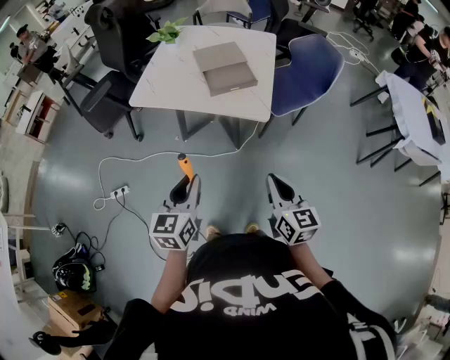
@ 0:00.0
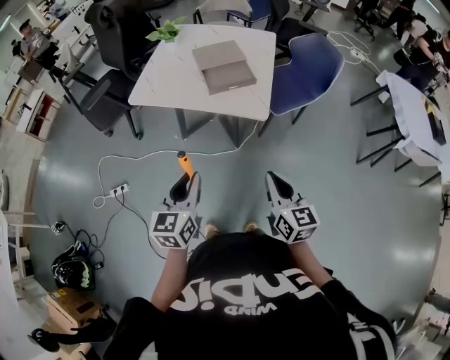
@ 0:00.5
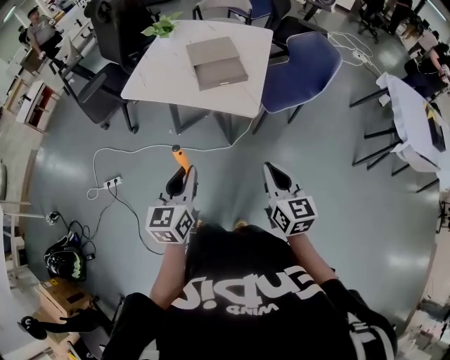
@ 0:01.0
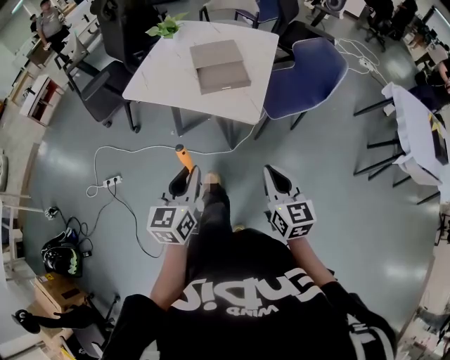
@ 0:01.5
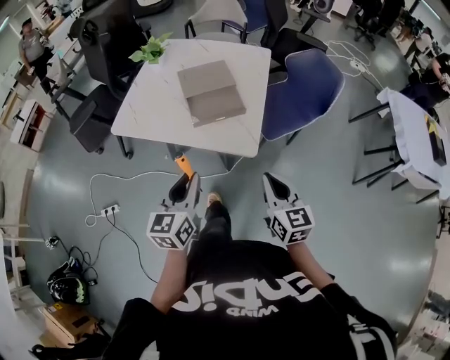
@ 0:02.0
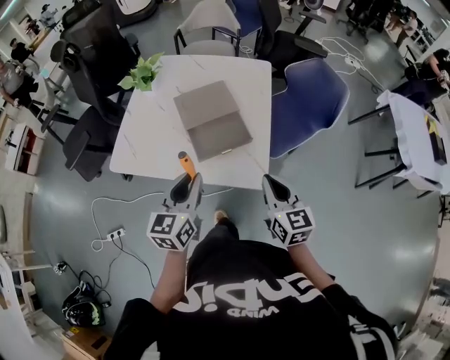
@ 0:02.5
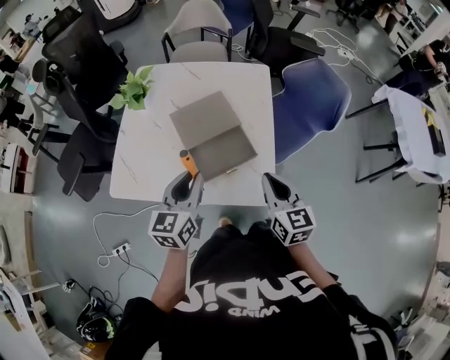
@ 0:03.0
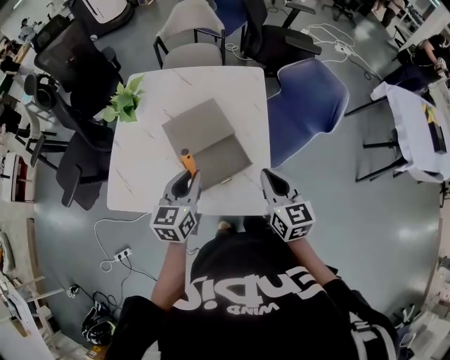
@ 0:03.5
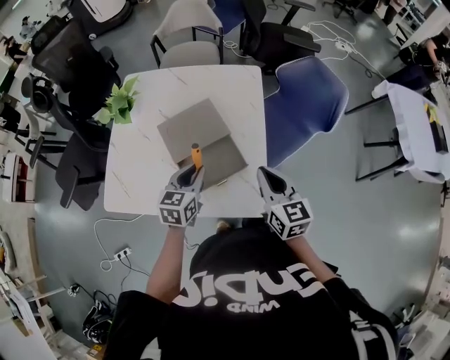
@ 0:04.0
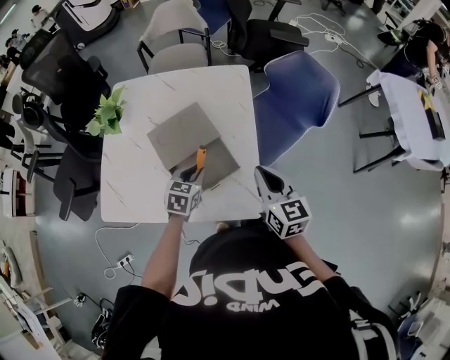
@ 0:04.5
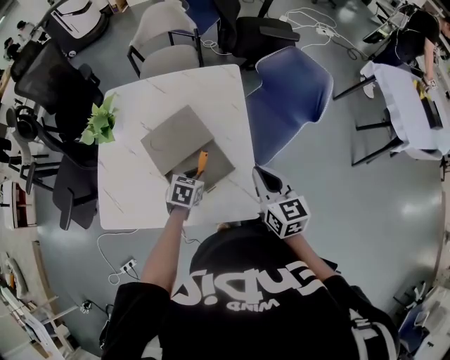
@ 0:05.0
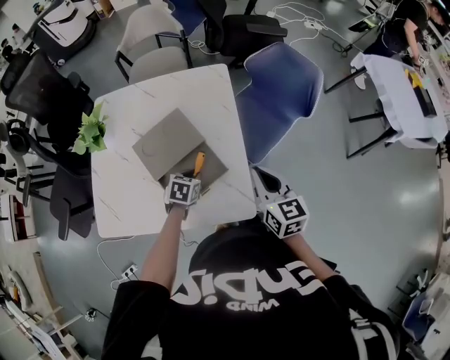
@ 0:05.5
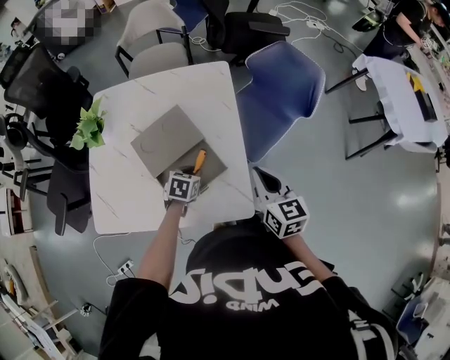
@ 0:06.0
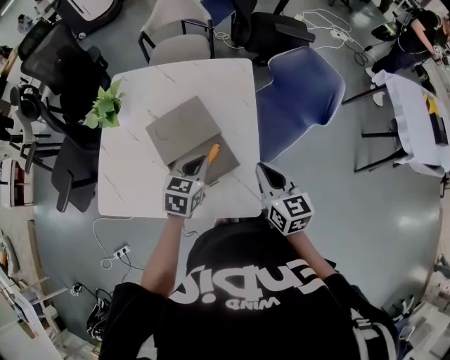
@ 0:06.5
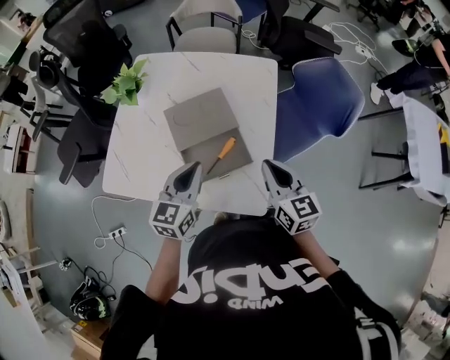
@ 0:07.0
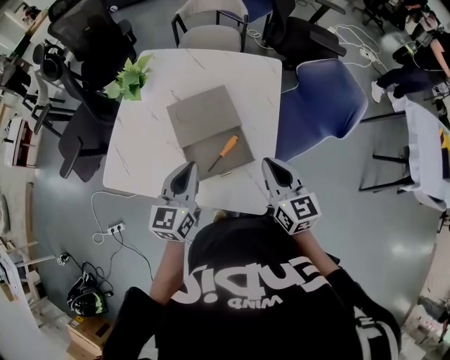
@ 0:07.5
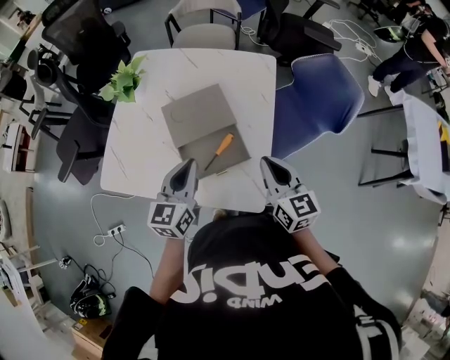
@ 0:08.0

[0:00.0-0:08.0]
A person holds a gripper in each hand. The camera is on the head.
0:00.0 to 0:02.0: The right gripper is displaced forward by some 15 cm; the left gripper goes roughly 20 cm forward and to the right.
0:02.0 to 0:04.0: Both grippers move forward, approximately 30 cm. The left gripper rotates approximately 20 degrees.
0:04.0 to 0:06.0: The right gripper goes approximately 5 cm to the right, while the left gripper goes some 15 cm downward, and rotates approximately 30 degrees.
0:06.0 to 0:08.0: The left gripper goes approximately 20 cm upward, and points its fingers some 40 degrees further upward; the right gripper moves to the left, some 5 cm.

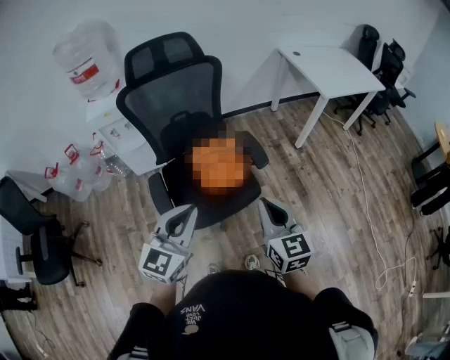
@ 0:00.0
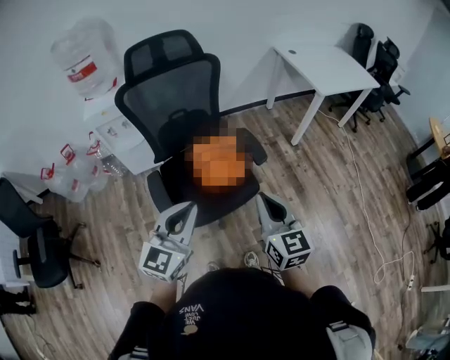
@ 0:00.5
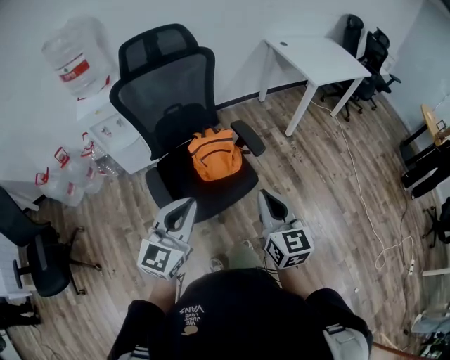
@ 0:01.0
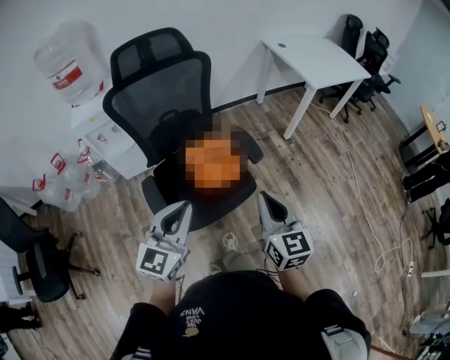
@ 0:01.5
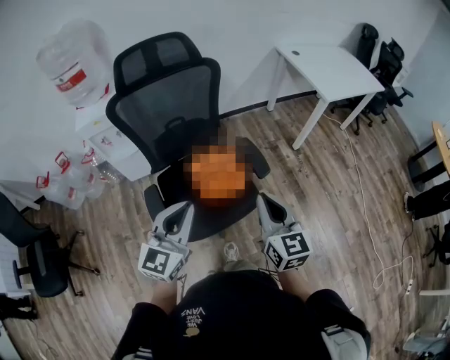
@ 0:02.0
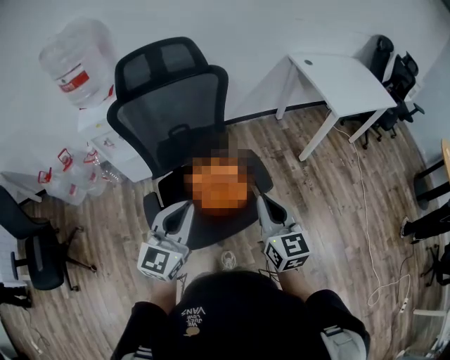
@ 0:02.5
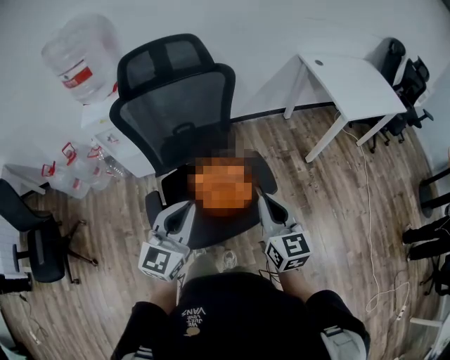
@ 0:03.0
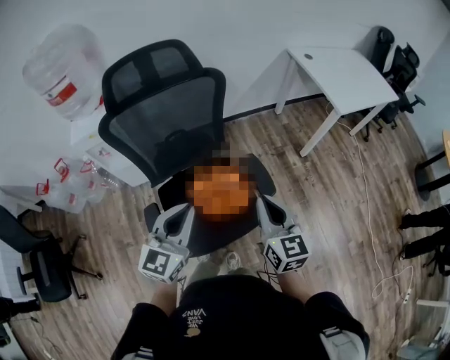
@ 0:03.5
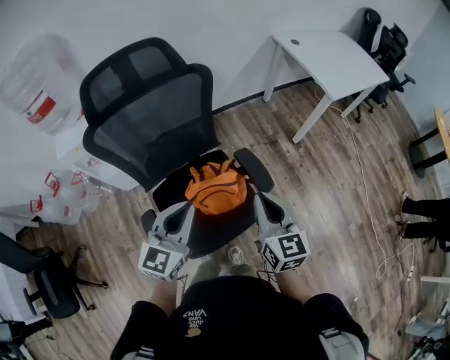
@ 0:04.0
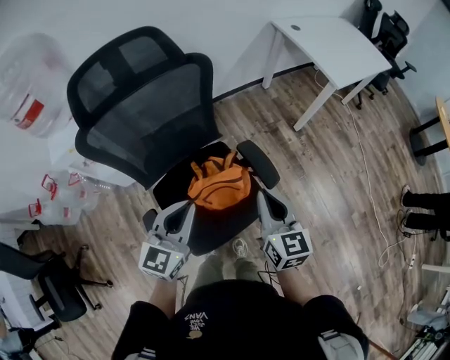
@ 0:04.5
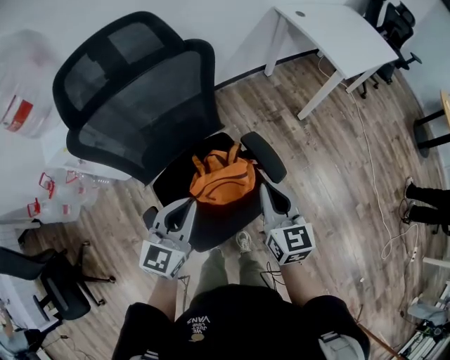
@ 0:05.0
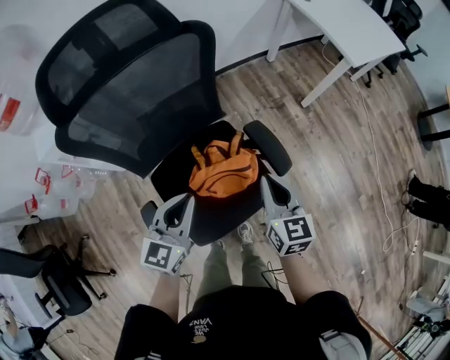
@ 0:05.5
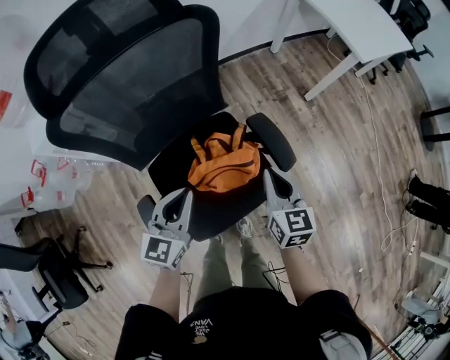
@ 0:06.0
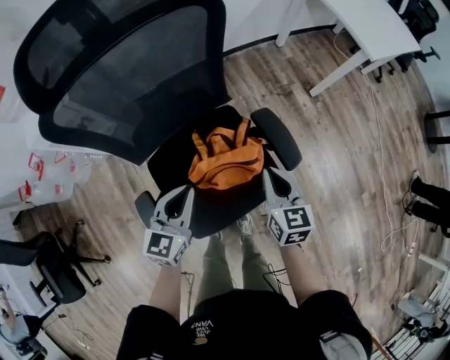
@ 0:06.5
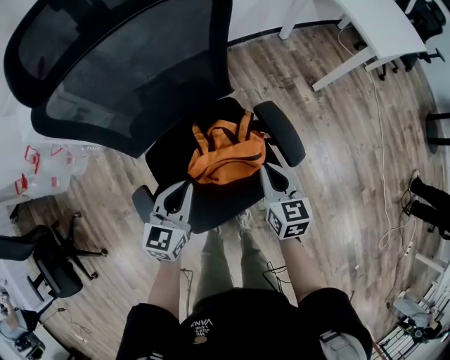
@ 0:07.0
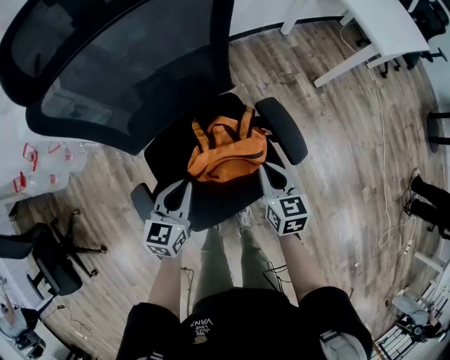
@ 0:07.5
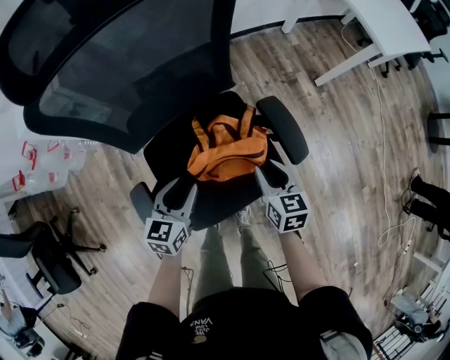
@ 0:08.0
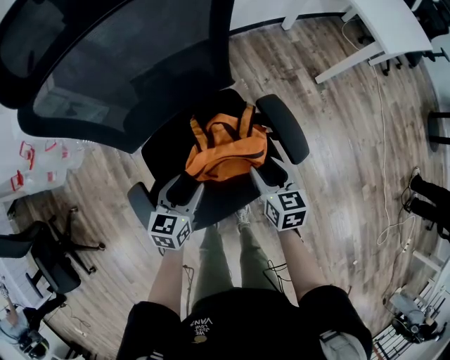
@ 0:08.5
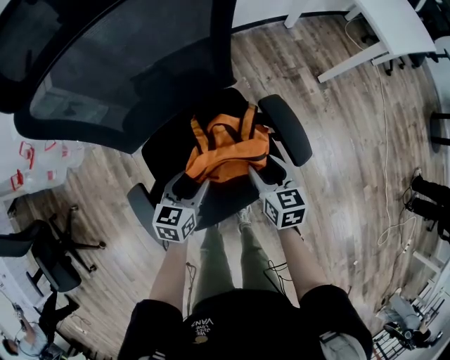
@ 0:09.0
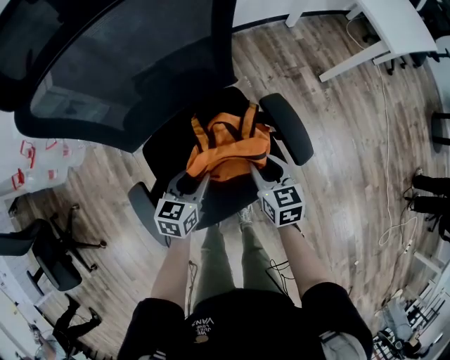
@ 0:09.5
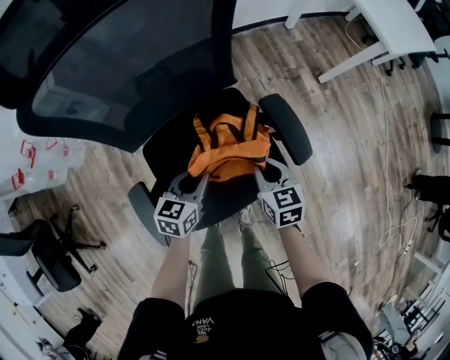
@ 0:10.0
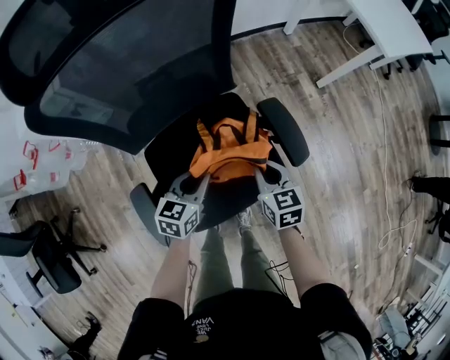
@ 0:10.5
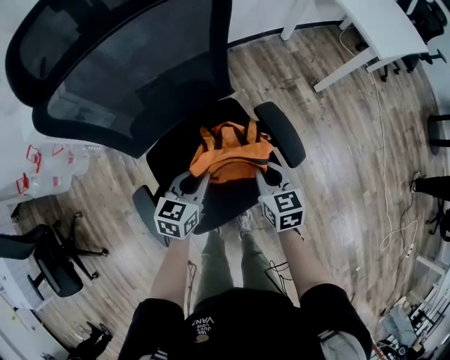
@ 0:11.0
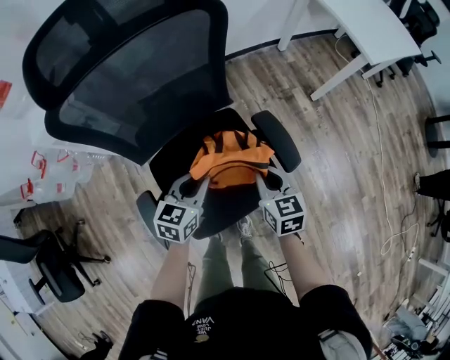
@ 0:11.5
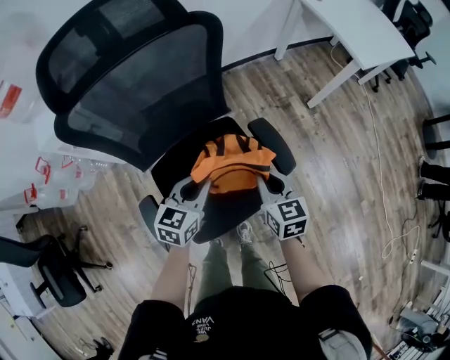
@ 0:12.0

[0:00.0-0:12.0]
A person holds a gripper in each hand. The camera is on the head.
0:00.0 to 0:02.0: Both grippers move forward, roughly 10 cm.
0:02.0 to 0:04.0: The two grippers go some 15 cm forward.
0:04.0 to 0:06.0: The left gripper is displaced downward by some 15 cm, while the right gripper shifts approximately 20 cm downward and forward.
0:06.0 to 0:08.0: Both grippers travel together downward, about 15 cm. The right gripper opens. Meanwhile the left gripper opens its fingers.
0:08.0 to 0:10.0: The right gripper closes its fingers. Meanwhile the left gripper shifts by about 5 cm, and opens and closes again.
0:10.0 to 0:12.0: Both grippers travel together upward, approximately 15 cm.

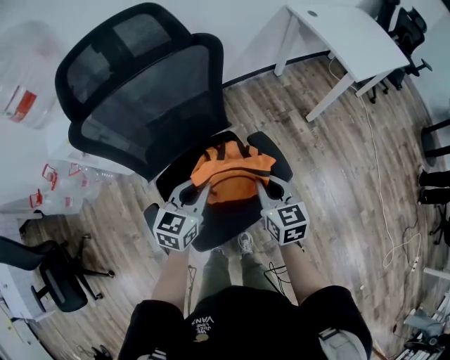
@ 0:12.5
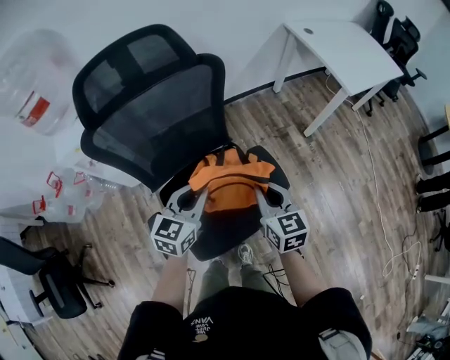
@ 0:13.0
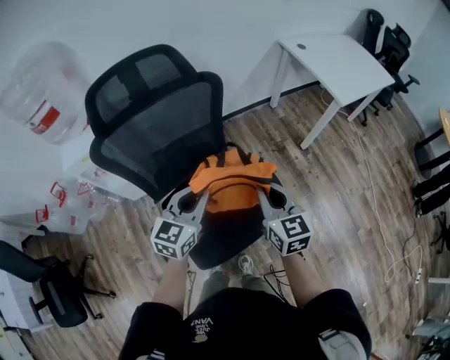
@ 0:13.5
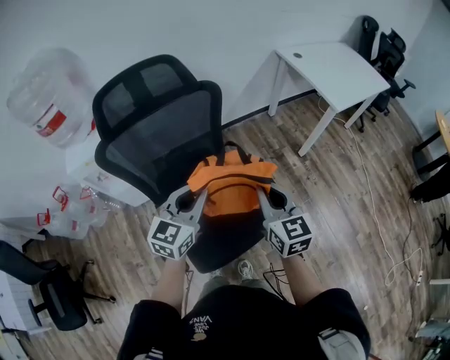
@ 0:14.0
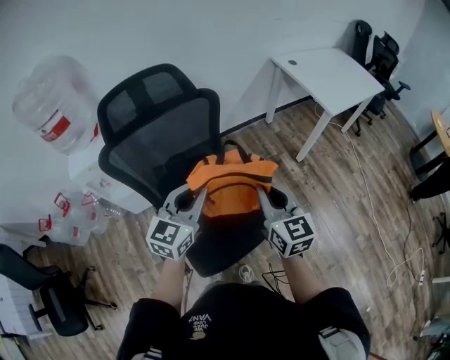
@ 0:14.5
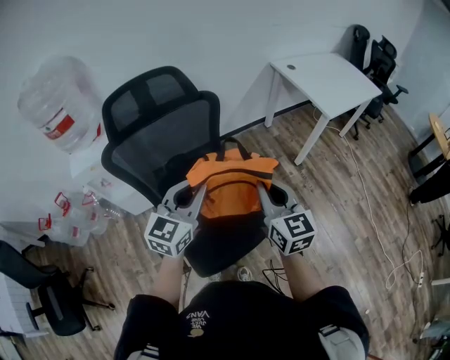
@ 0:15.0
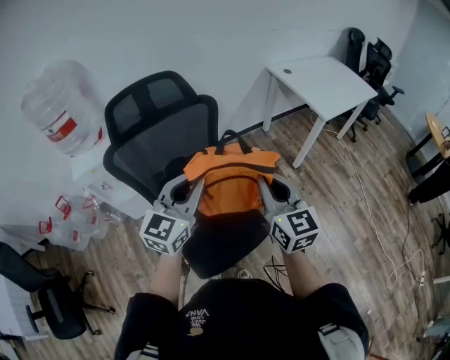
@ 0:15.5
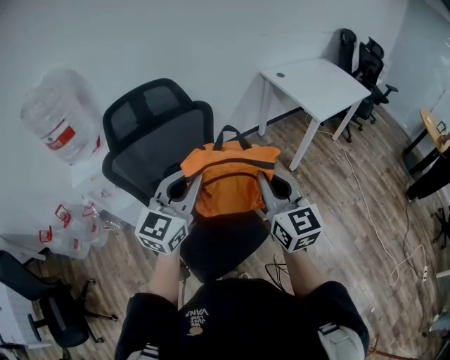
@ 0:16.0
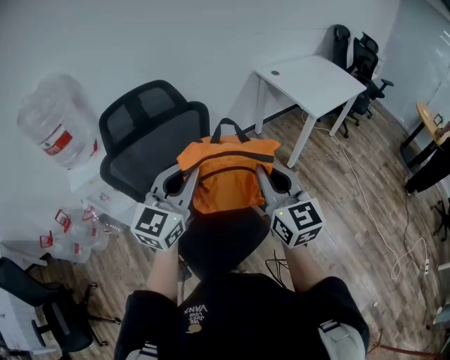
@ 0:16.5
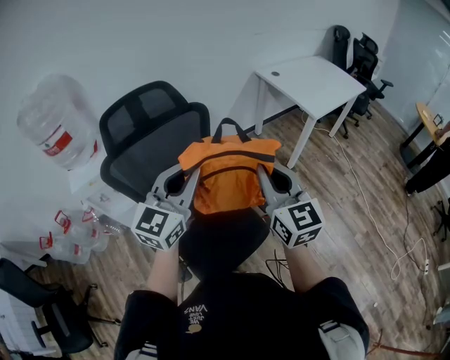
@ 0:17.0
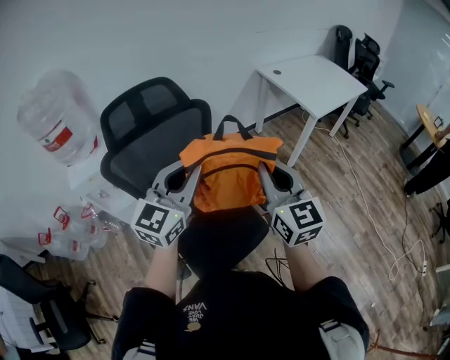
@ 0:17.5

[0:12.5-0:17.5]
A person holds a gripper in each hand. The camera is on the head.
0:12.5 to 0:15.0: Both grippers move upward, roughly 20 cm. The right gripper changes its angle by about 20 degrees. The left gripper rotates some 20 degrees.
0:15.0 to 0:17.5: The grippers both shift upward by roughly 10 cm.

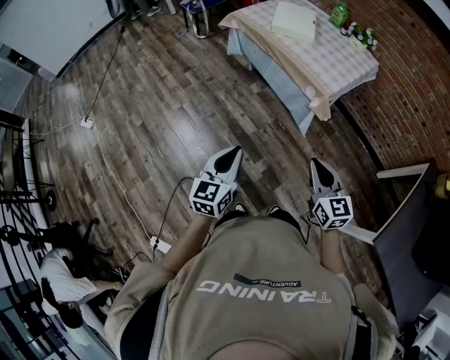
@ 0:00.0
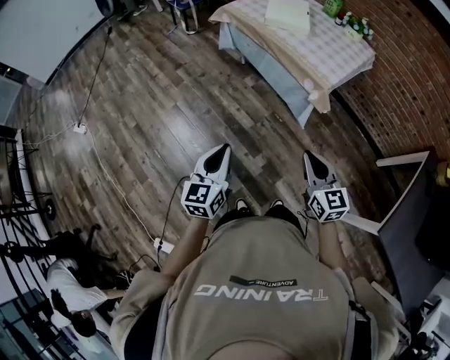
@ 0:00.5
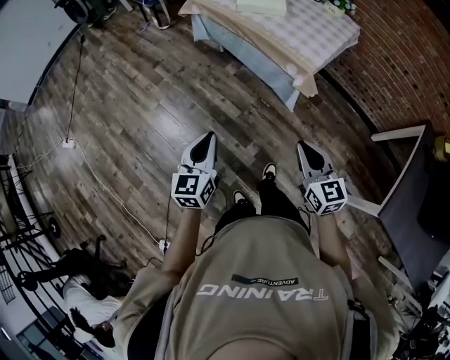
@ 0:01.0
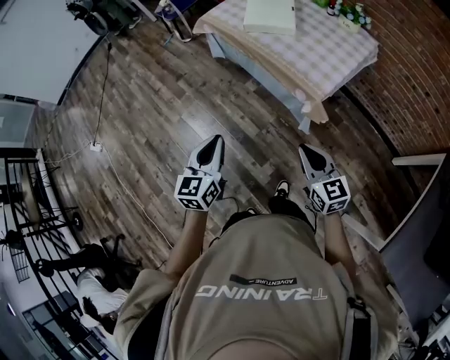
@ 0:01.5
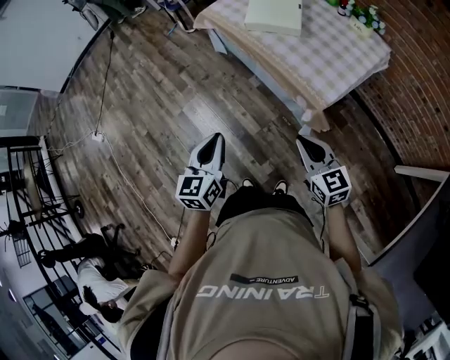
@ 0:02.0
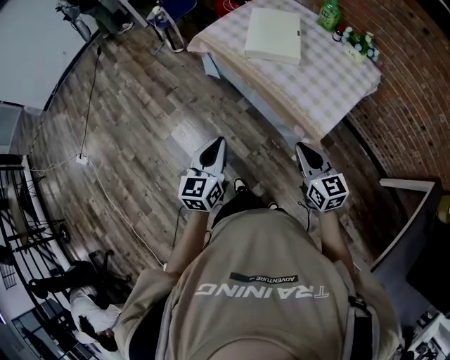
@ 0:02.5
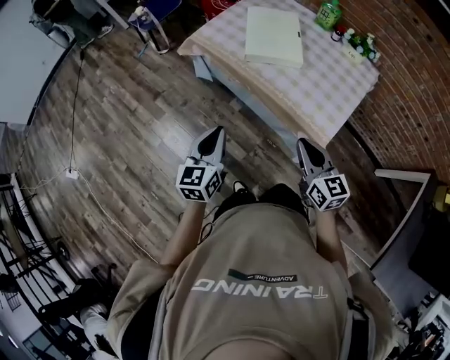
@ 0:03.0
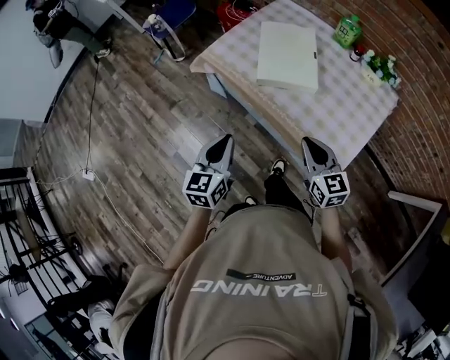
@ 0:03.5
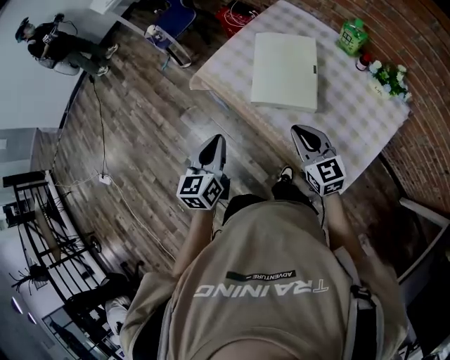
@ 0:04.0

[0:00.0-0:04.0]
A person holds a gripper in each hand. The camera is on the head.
0:00.0 to 0:02.0: The grippers both shift forward by roughly 25 cm.
0:02.0 to 0:04.0: The two grippers go approximately 40 cm forward.
